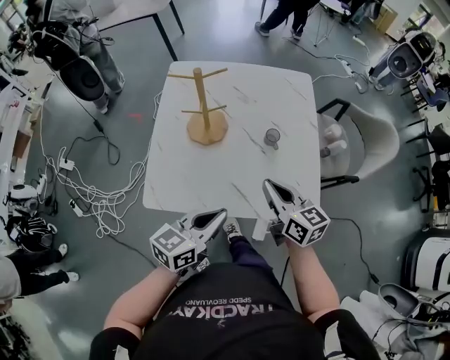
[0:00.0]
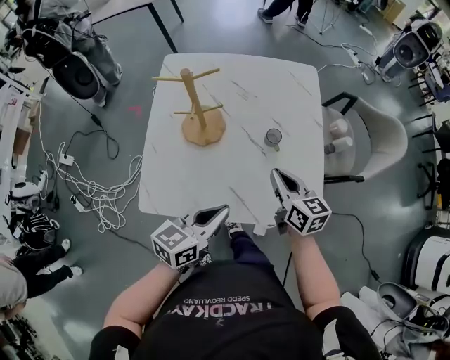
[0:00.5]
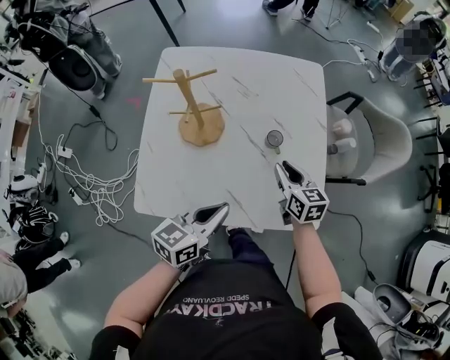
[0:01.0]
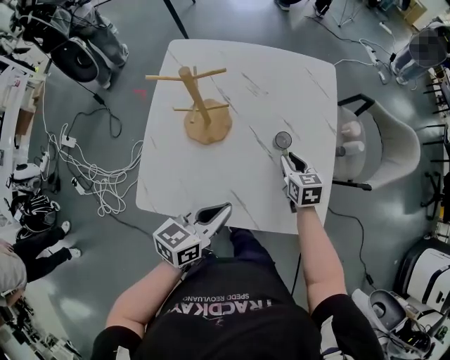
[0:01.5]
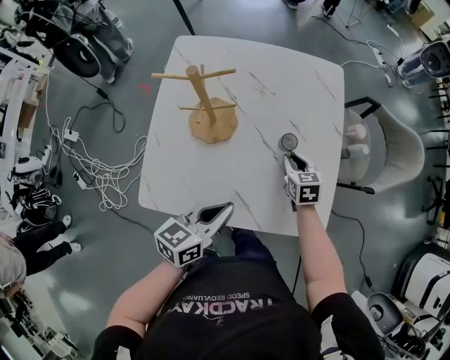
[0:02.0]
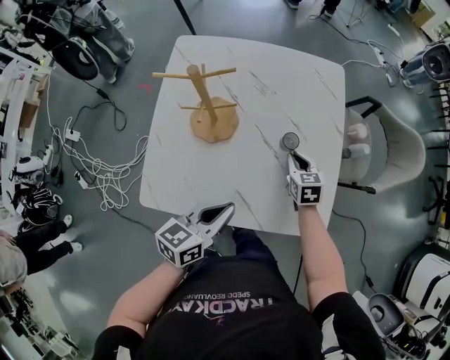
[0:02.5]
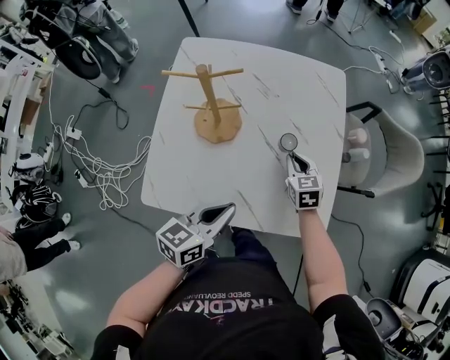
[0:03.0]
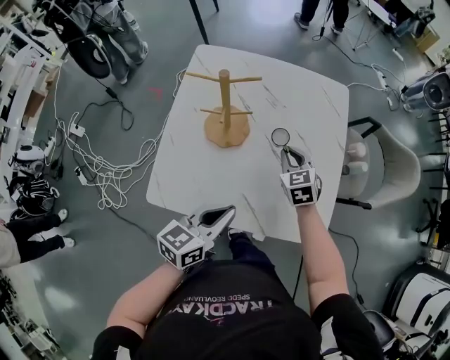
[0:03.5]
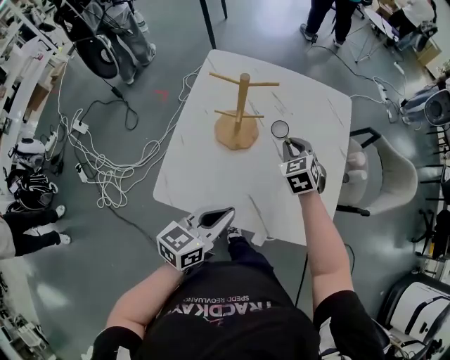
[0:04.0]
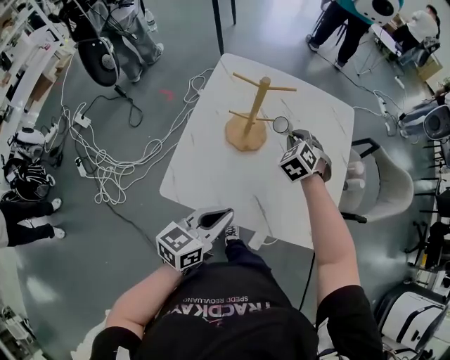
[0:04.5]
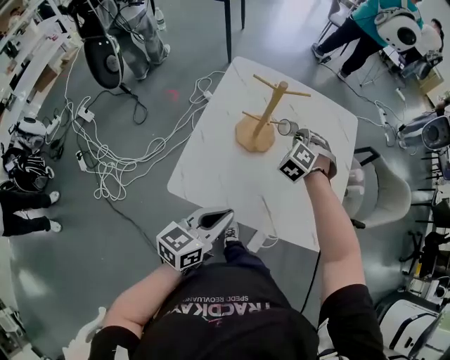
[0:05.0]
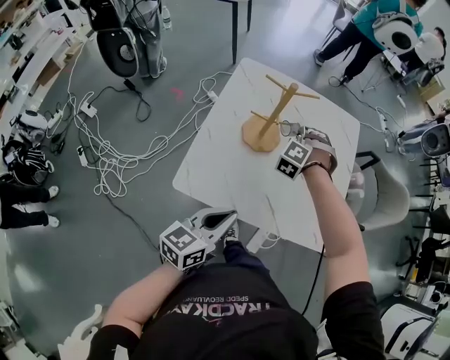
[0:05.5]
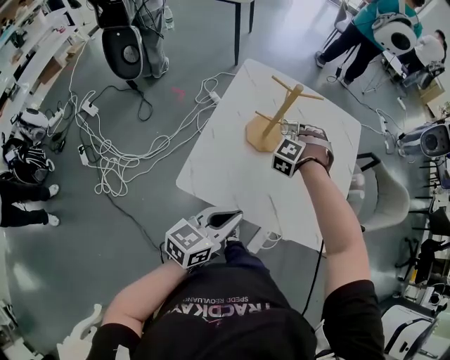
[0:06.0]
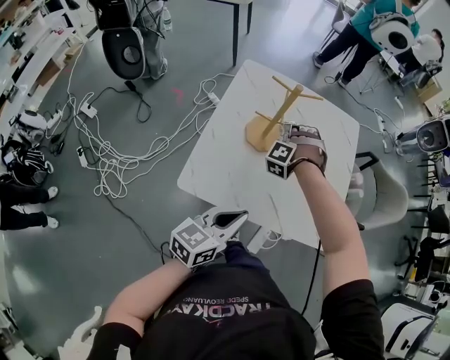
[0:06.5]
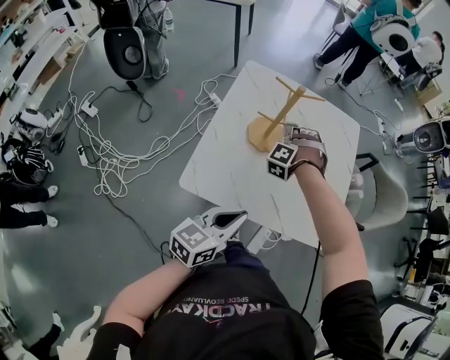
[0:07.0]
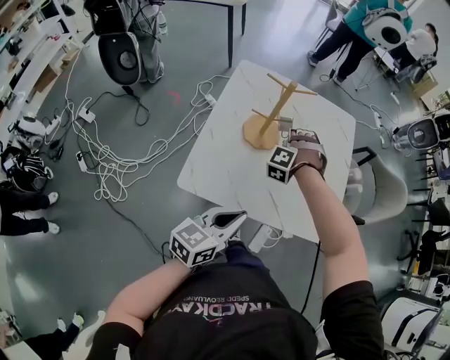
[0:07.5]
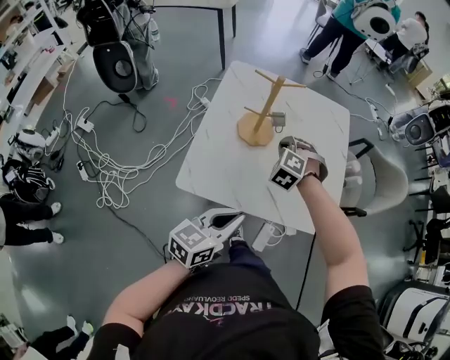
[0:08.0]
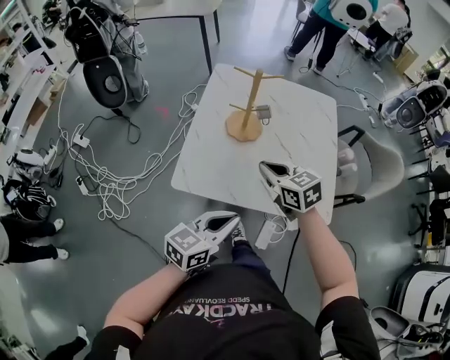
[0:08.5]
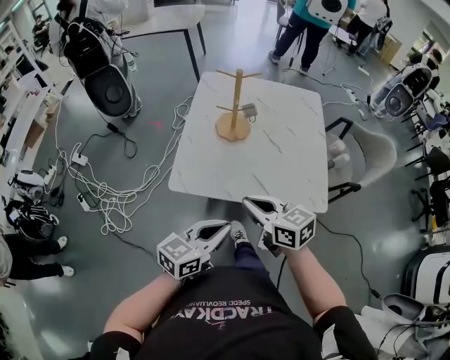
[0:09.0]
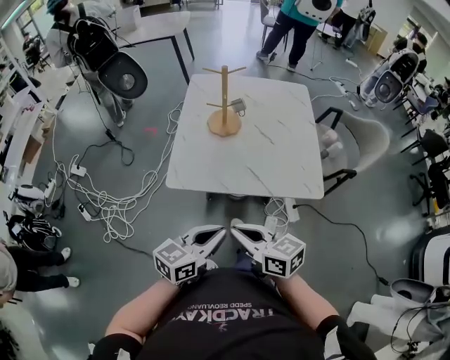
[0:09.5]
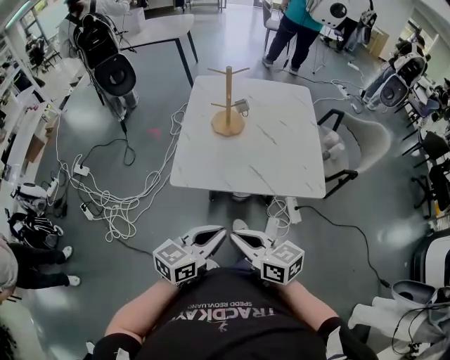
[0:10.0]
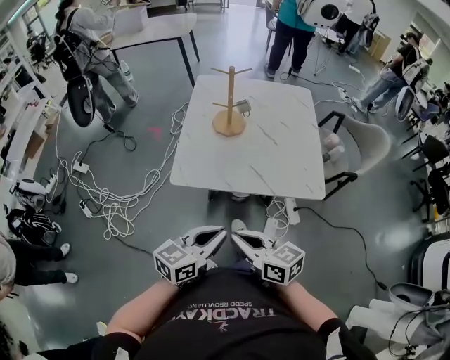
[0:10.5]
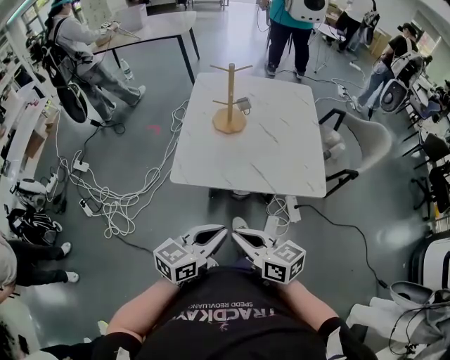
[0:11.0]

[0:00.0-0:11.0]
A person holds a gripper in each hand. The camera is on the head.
0:00.0 to 0:02.0: The right gripper is displaced downward and forward by some 25 cm, and turns by about 30 degrees, while the left gripper shifts approximately 10 cm forward and downward.
0:02.0 to 0:03.5: The right gripper shifts some 10 cm upward and to the left, and changes its angle by about 20 degrees.
0:03.5 to 0:05.5: The right gripper travels to the left and upward by roughly 15 cm, and rotates around the line of its fingers by approximately 60 degrees, counterclockwise from behind. Meanwhile the left gripper moves backward and to the left, some 10 cm.
0:05.5 to 0:07.5: The right gripper heads backward, covering approximately 5 cm.
0:07.5 to 0:09.0: The left gripper shifts by some 10 cm; the right gripper changes place by roughly 35 cm, and rotates roughly 120 degrees.
0:09.0 to 0:11.0: The right gripper heads backward, covering some 15 cm; the left gripper heads backward, covering about 5 cm.

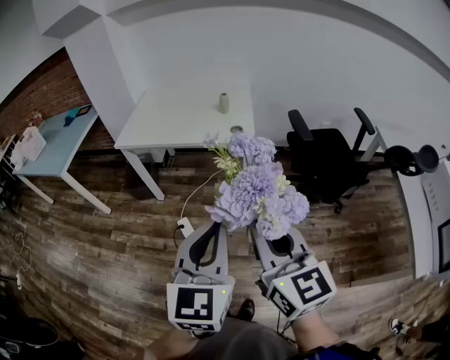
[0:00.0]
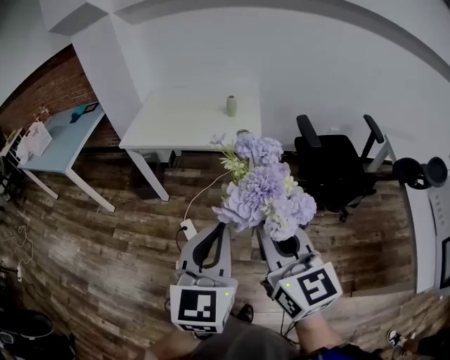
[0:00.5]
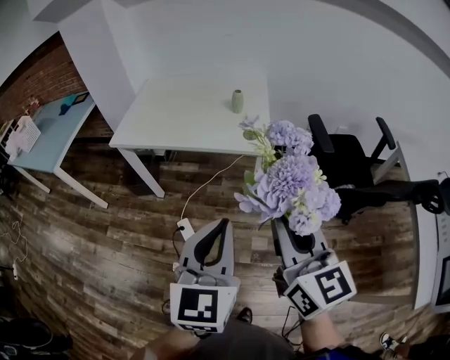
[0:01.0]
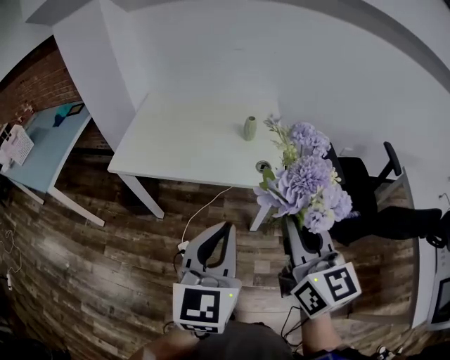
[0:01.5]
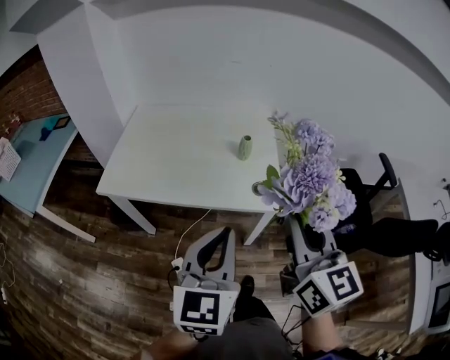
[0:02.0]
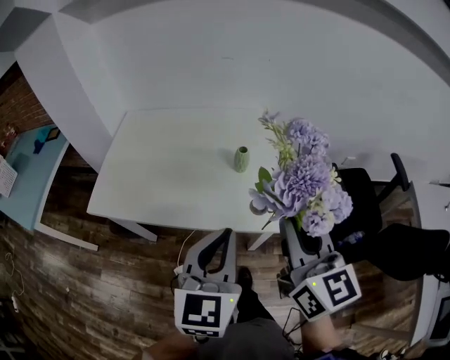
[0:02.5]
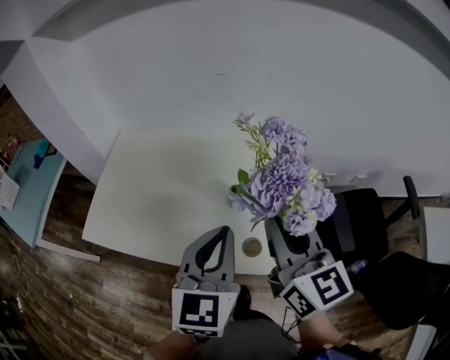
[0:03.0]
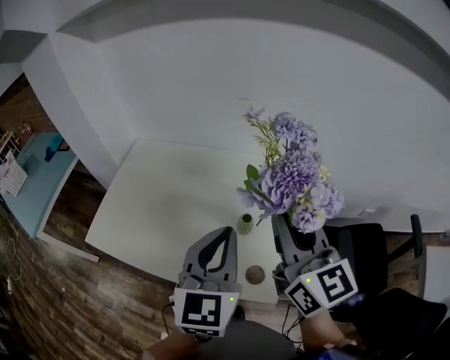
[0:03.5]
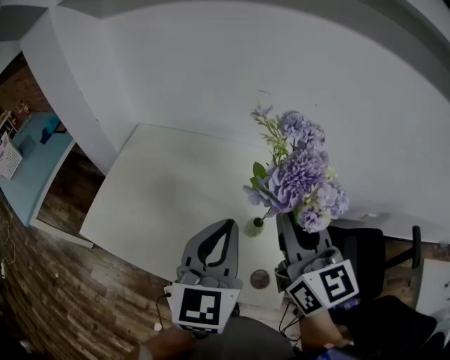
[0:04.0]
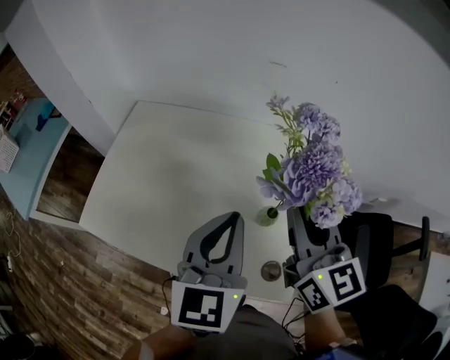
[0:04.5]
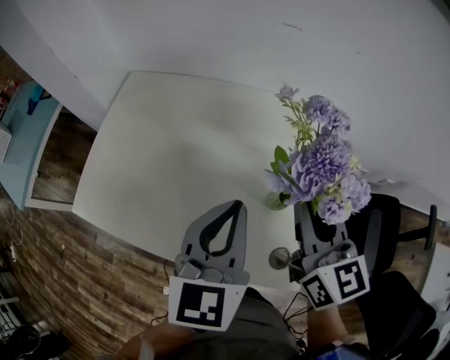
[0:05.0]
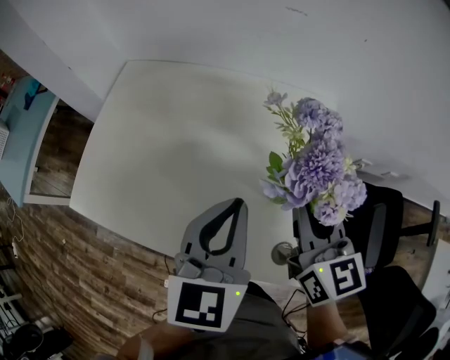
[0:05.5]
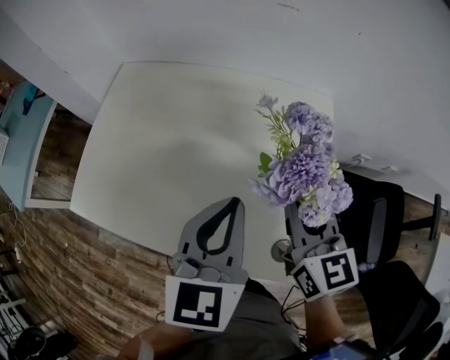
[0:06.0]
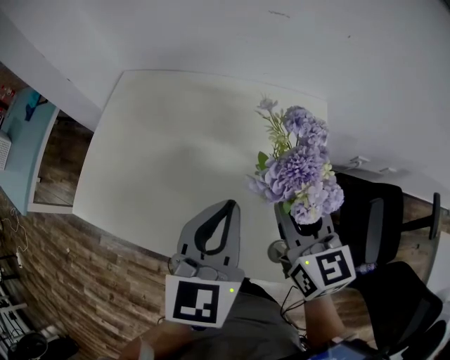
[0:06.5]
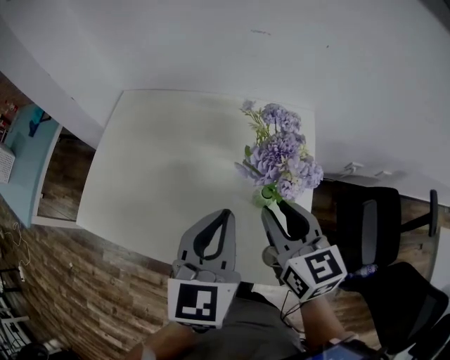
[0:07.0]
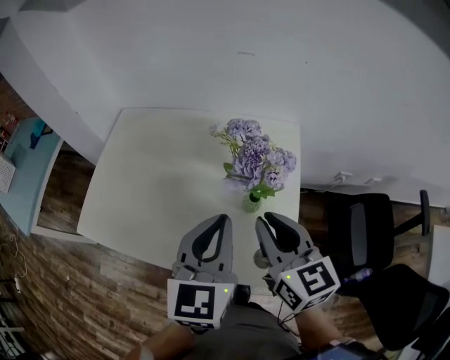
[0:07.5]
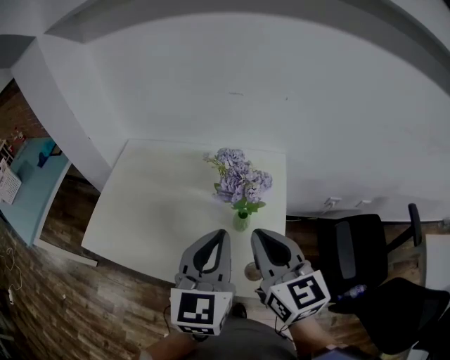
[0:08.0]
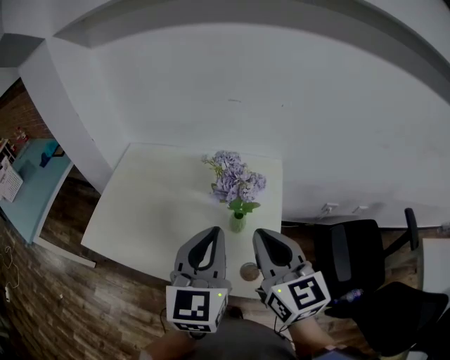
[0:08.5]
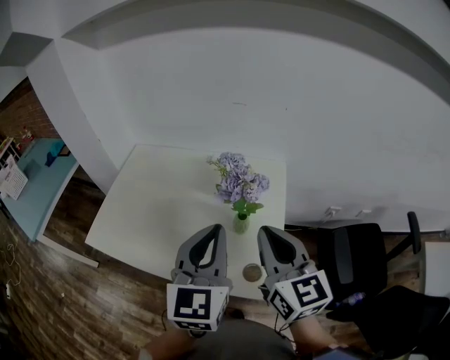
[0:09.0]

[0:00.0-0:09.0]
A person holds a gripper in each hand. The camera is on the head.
0:00.0 to 0:02.0: The two grippers go some 35 cm forward.
0:04.5 to 0:07.0: The left gripper heads upward, covering roughly 5 cm, while the right gripper opens up.
0:07.0 to 0:09.0: Both grippers move upward and backward, approximately 15 cm. The right gripper closes its fingers.

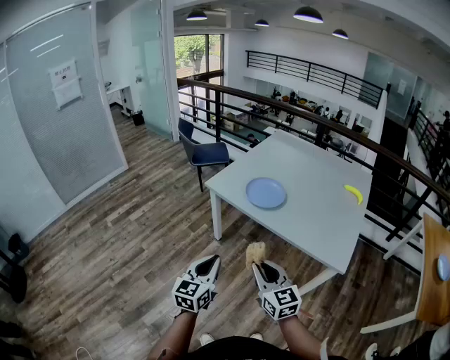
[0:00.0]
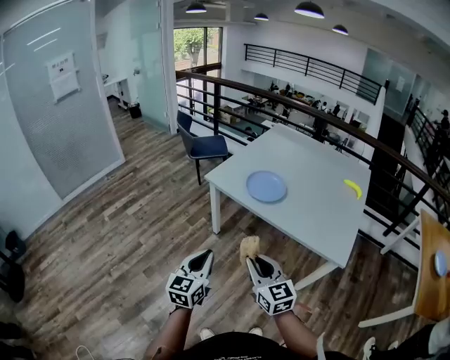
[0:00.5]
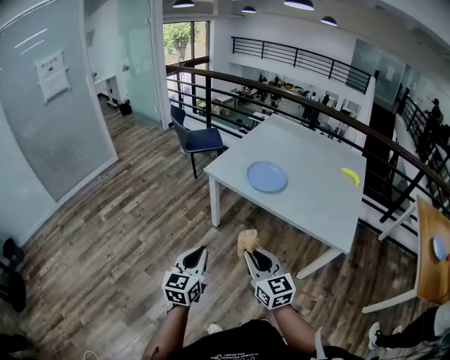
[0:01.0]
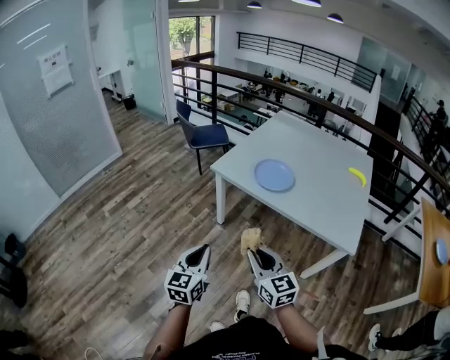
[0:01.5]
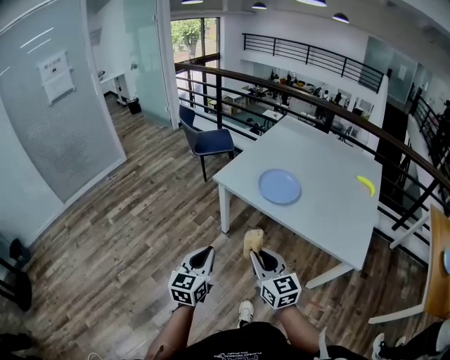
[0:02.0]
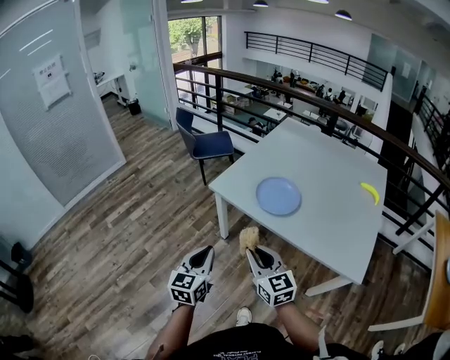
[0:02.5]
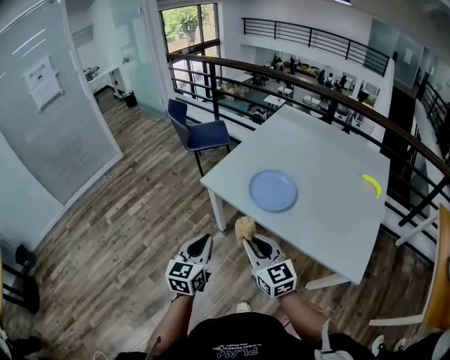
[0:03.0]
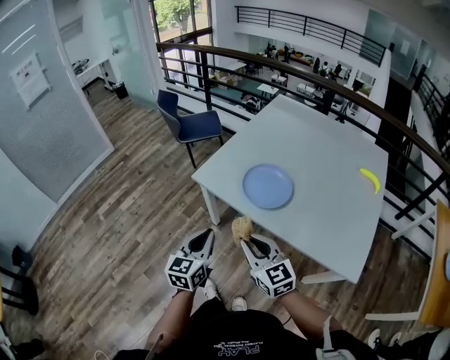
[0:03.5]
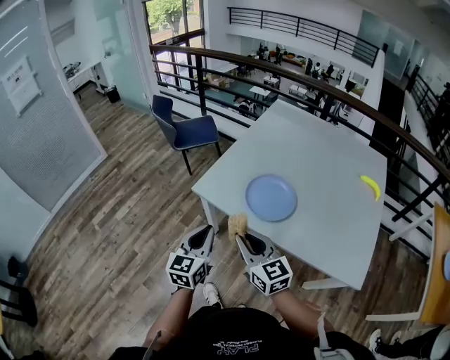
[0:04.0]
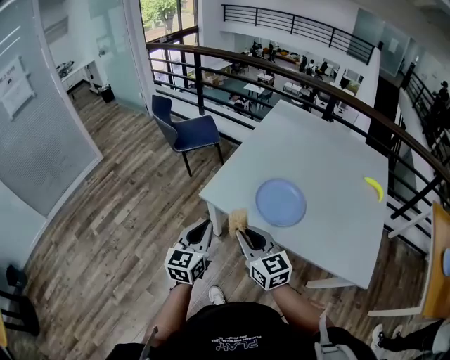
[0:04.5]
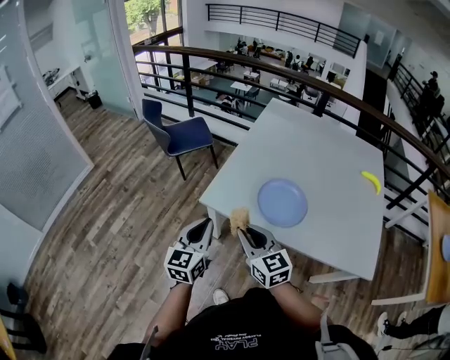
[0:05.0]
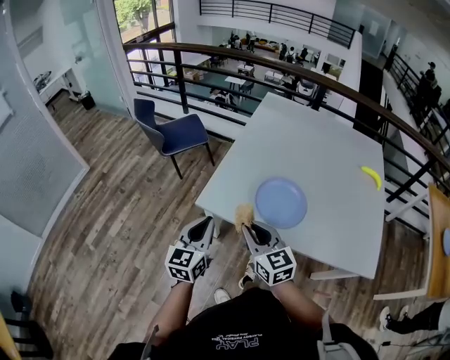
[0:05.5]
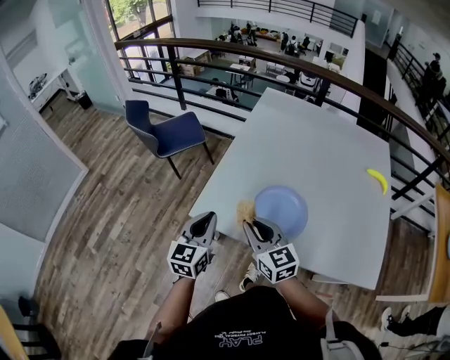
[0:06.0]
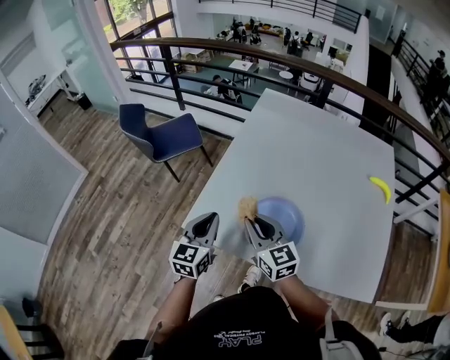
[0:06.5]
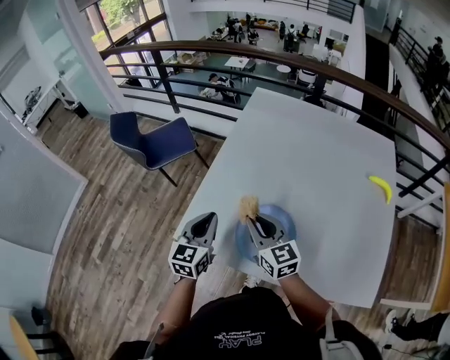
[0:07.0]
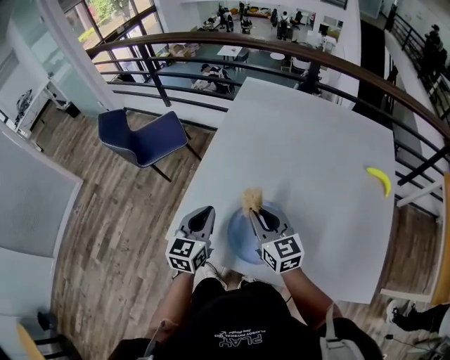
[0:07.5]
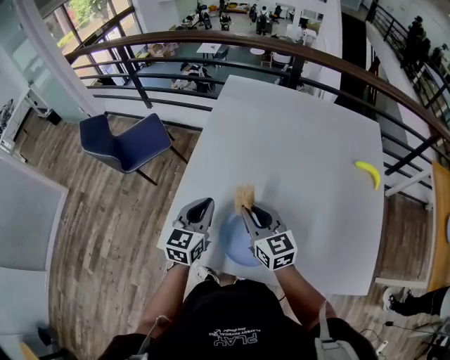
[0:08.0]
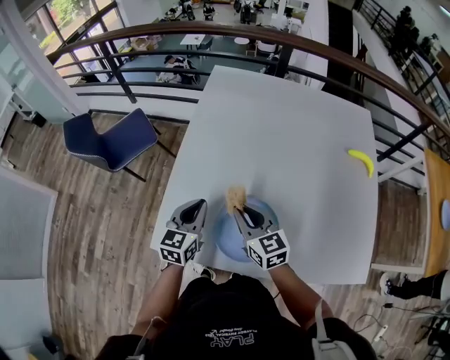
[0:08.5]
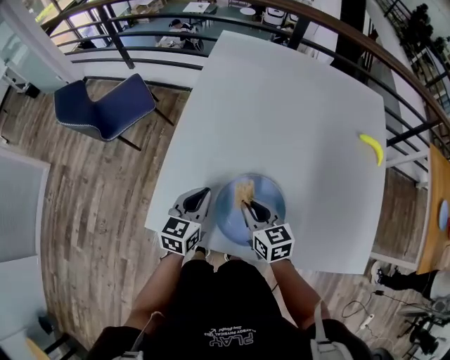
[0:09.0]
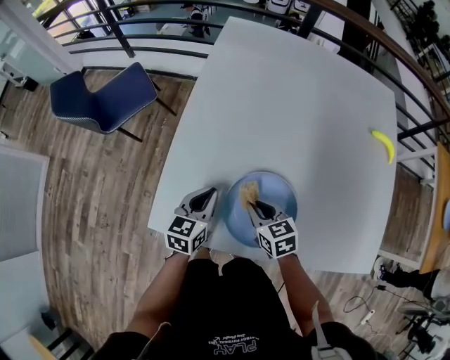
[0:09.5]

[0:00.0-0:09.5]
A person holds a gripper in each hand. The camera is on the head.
0:00.0 to 0:02.0: The right gripper is displaced forward and to the left by approximately 15 cm. Meanwhile the left gripper is displaced to the left and forward by about 15 cm.
0:02.0 to 0:04.0: Both grippers move forward, about 25 cm.
0:04.0 to 0:05.5: The two grippers go roughly 15 cm forward and to the left.
0:05.5 to 0:07.5: Both grippers move forward and to the right, some 30 cm.
0:07.5 to 0:09.5: The two grippers go some 15 cm downward. The left gripper rotates roughly 20 degrees. Meanwhile the right gripper changes its angle by about 30 degrees.
